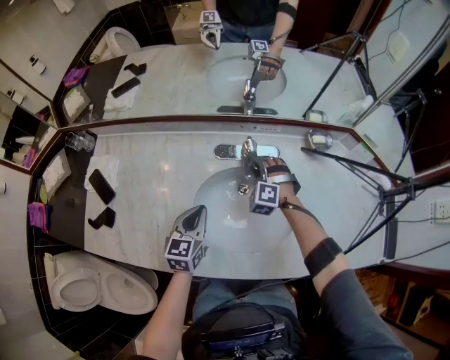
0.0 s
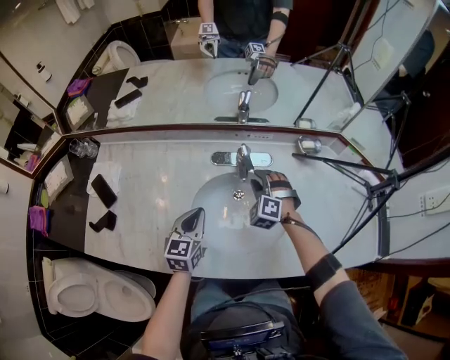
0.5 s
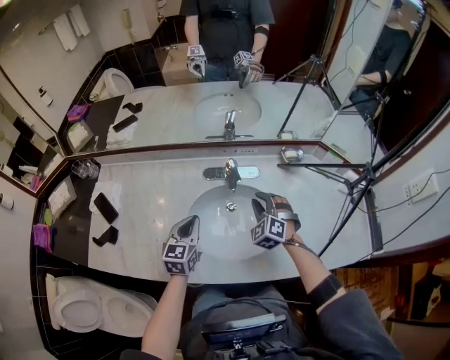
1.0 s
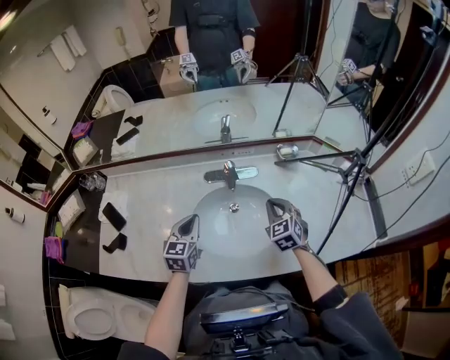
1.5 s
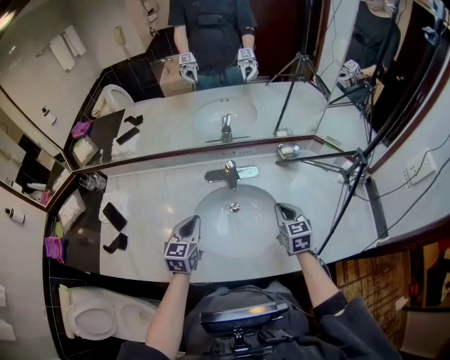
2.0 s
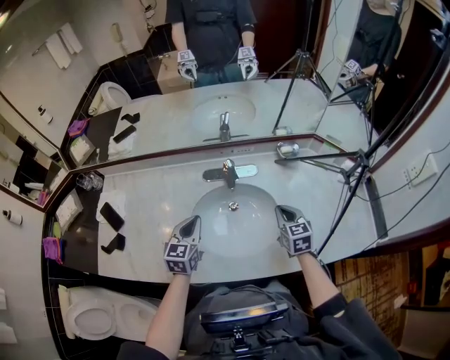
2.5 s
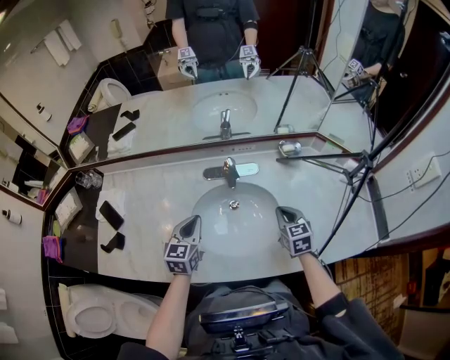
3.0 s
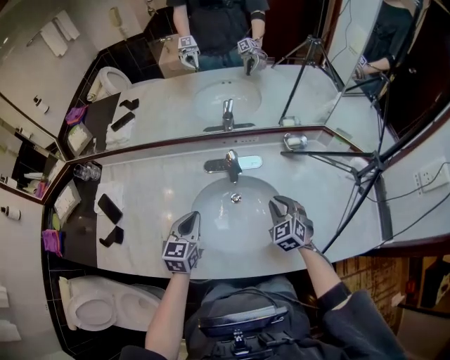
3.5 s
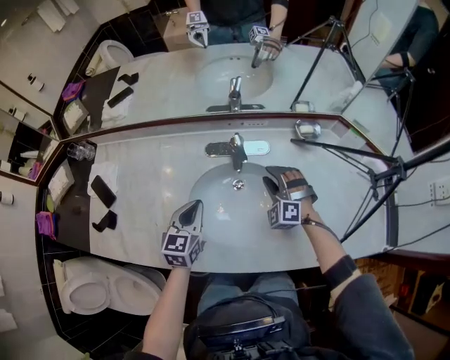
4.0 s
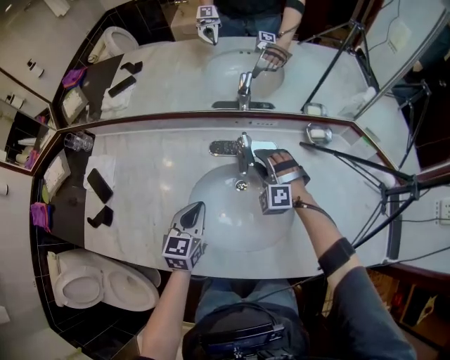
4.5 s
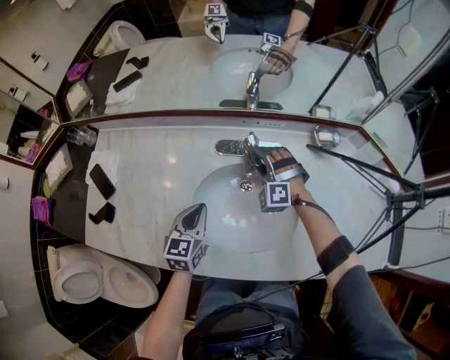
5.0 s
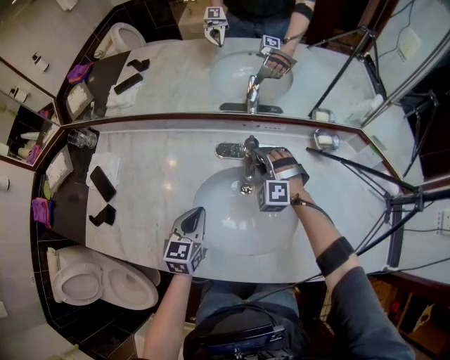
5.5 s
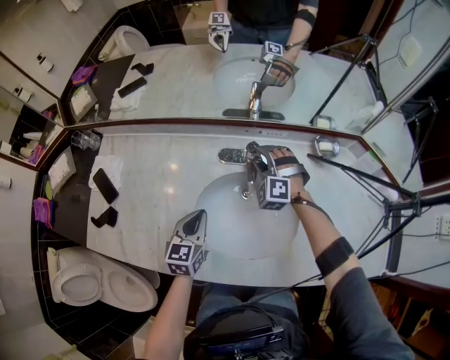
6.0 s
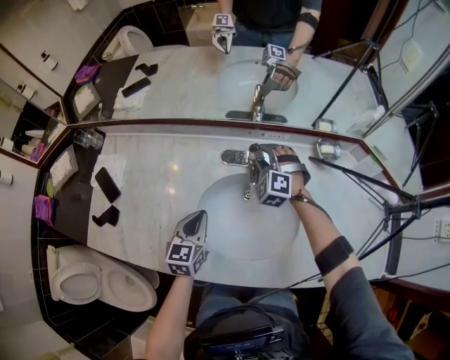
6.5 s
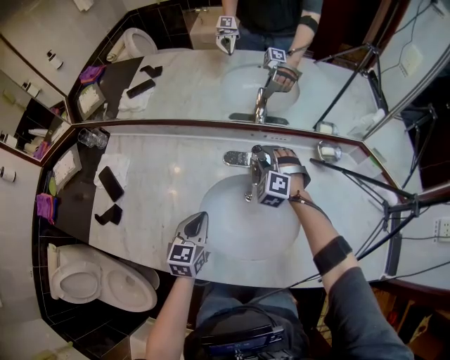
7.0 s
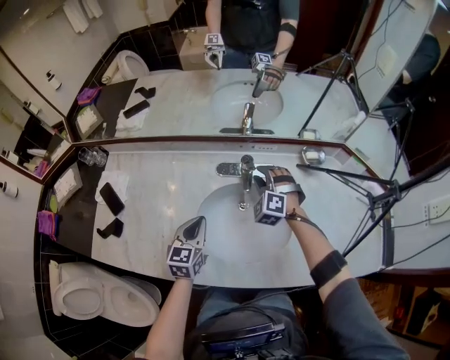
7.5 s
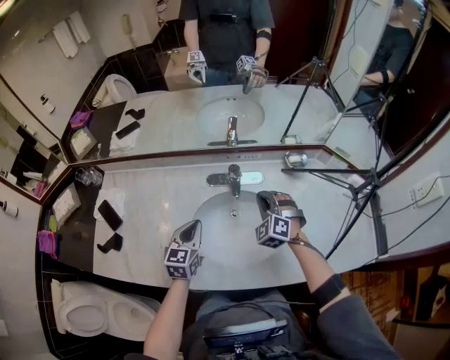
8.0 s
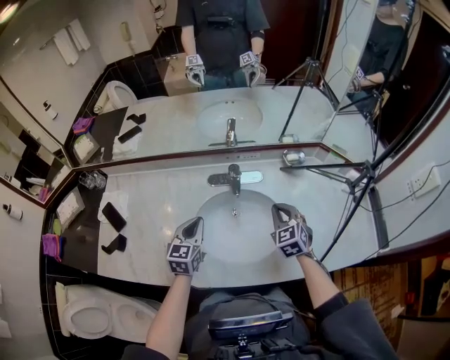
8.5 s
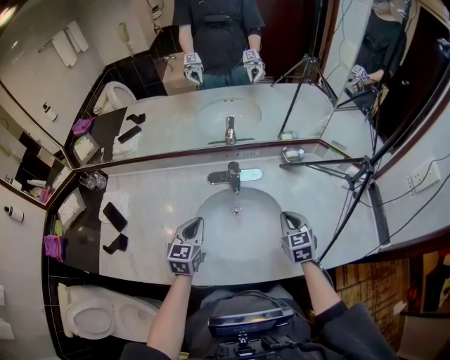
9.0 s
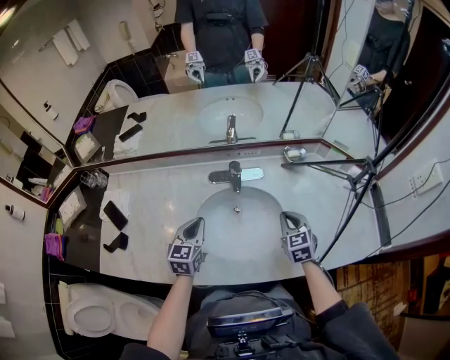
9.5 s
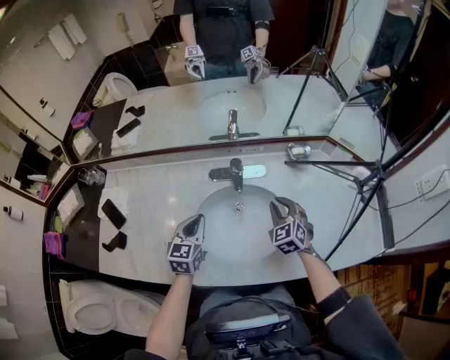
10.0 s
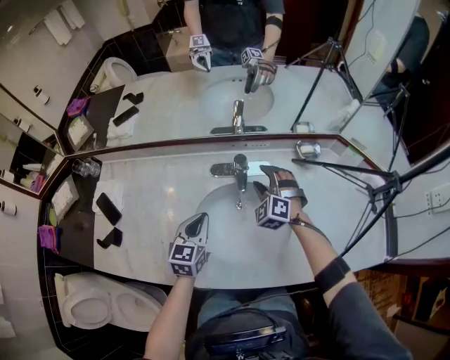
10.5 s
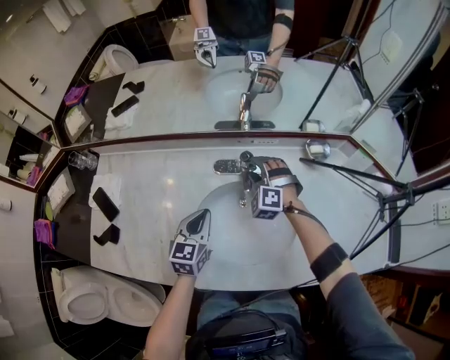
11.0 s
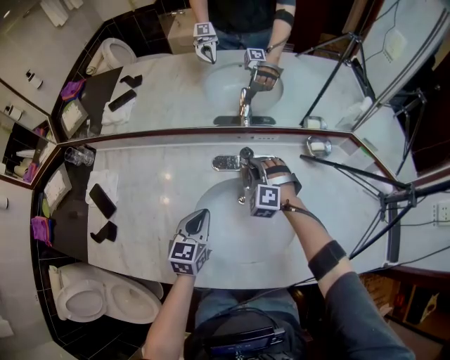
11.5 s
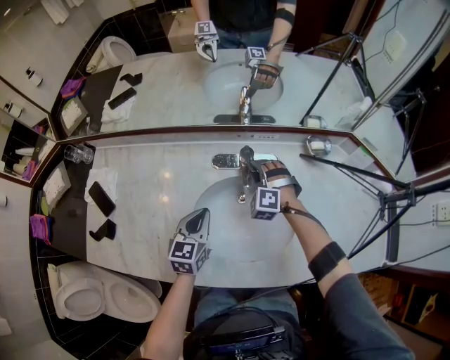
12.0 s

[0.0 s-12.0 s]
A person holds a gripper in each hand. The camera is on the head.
0.0 to 2.0 s: The right gripper heads backward, to the right and upward, covering roughly 25 cm, rolls clockwise, seen from behind, by some 70 degrees, and closes up; the left gripper travels upward by approximately 5 cm.
2.0 to 4.0 s: The right gripper shifts approximately 15 cm forward, downward and to the left, rotates around the line of its fingers by some 70 degrees, counterclockwise from behind, and opens; the left gripper changes place by roughly 5 cm.
4.0 to 6.0 s: The right gripper heads forward and to the left, covering approximately 15 cm.
6.0 to 8.0 s: The left gripper heads upward, covering approximately 5 cm; the right gripper moves backward, upward and to the right, some 15 cm, and closes.
8.0 to 10.0 s: The right gripper goes approximately 5 cm to the right, and rotates approximately 30 degrees.
10.0 to 12.0 s: The left gripper travels downward by some 5 cm. Meanwhile the right gripper shifts approximately 20 cm forward, to the left and downward, twists some 40 degrees counterclockwise, seen from behind, and opens and closes again.

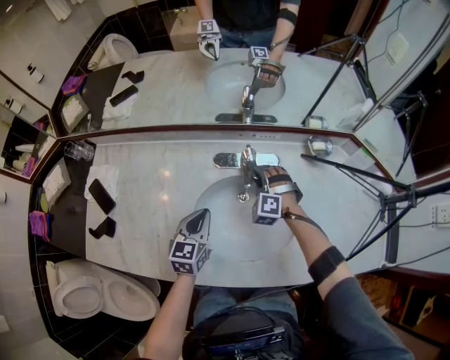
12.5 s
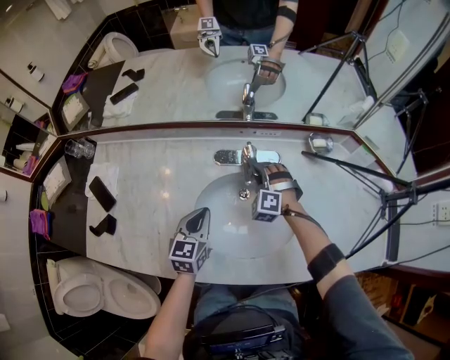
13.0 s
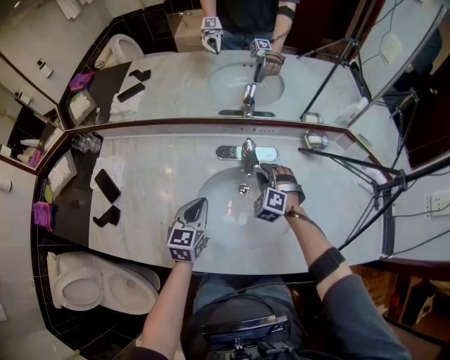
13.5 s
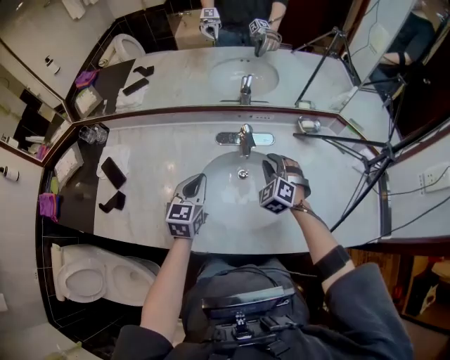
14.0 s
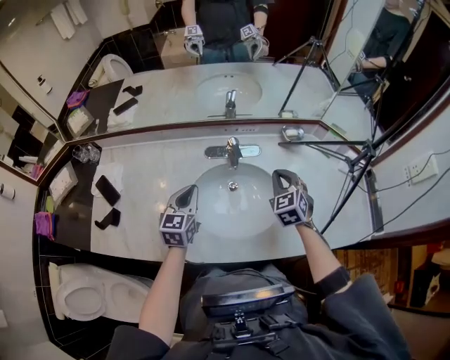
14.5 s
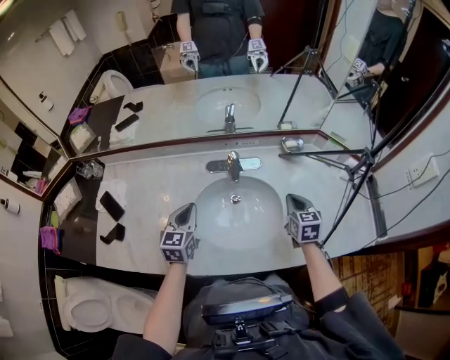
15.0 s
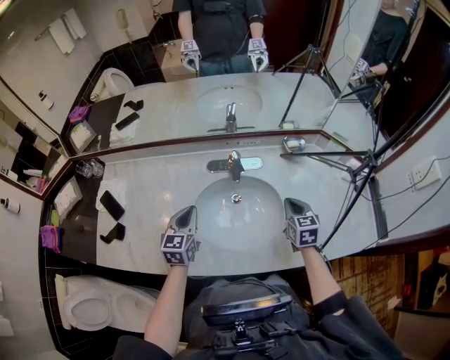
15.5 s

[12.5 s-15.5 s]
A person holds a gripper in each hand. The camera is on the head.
12.5 to 14.0 s: The right gripper travels upward and backward by about 15 cm, and rotates some 20 degrees; the left gripper is displaced upward by about 10 cm.
14.0 to 15.5 s: The right gripper moves to the right and backward, approximately 15 cm, and twists about 60 degrees clockwise, seen from behind.

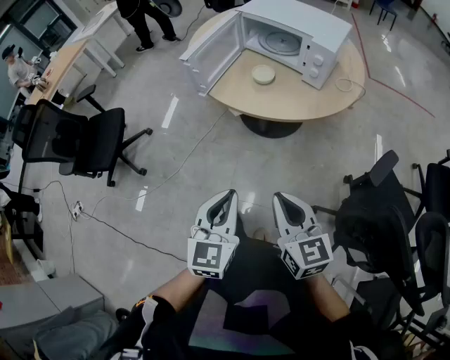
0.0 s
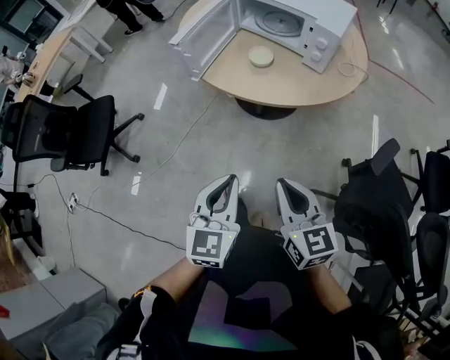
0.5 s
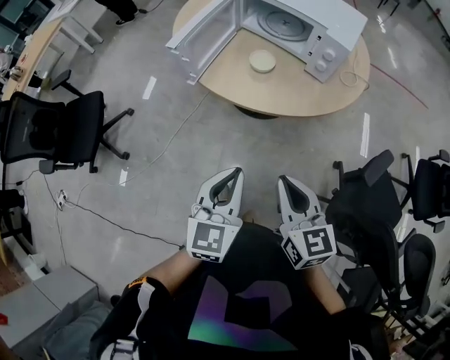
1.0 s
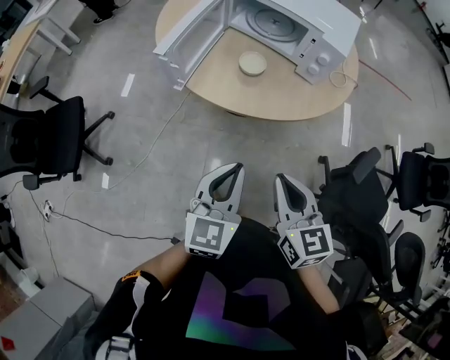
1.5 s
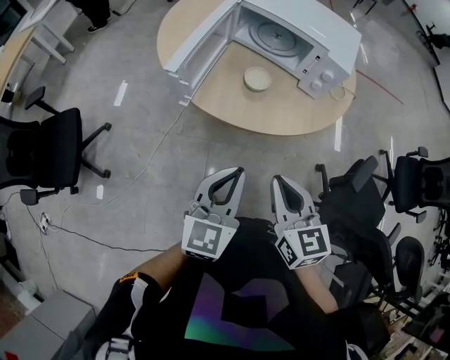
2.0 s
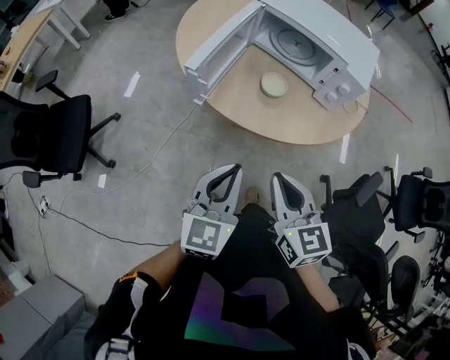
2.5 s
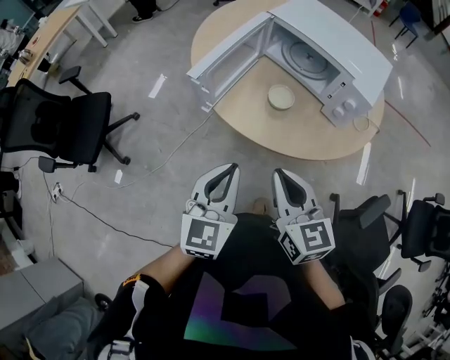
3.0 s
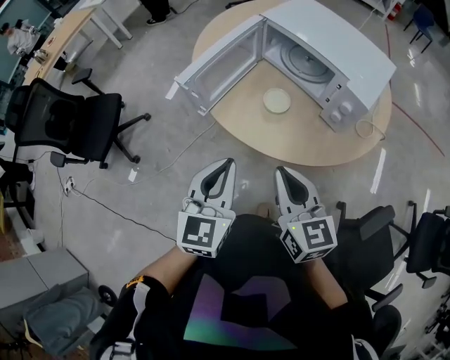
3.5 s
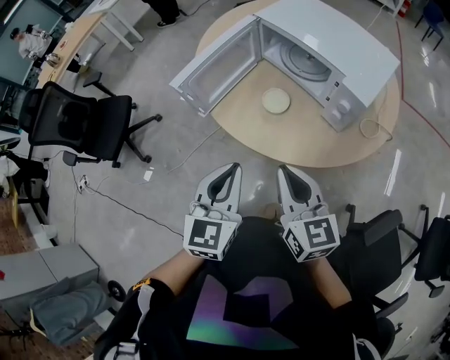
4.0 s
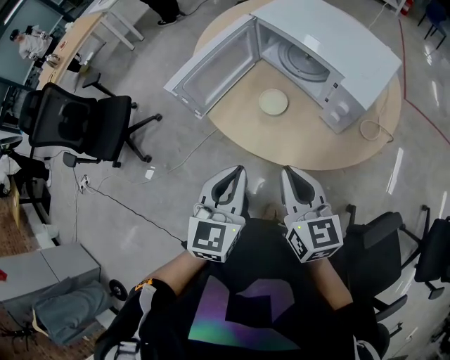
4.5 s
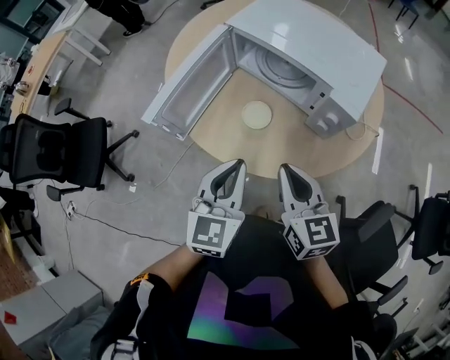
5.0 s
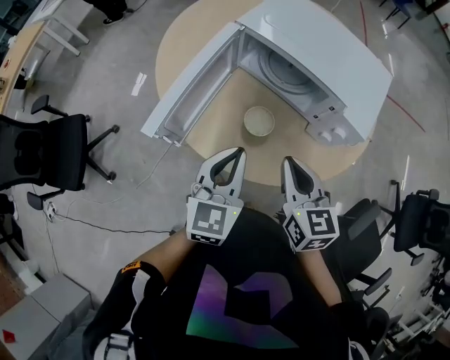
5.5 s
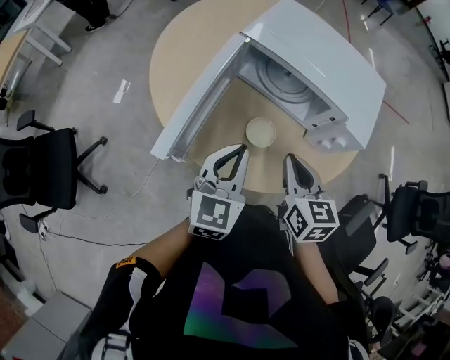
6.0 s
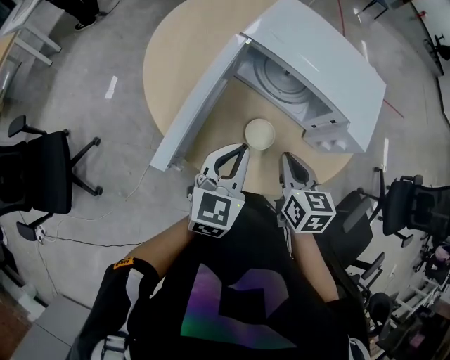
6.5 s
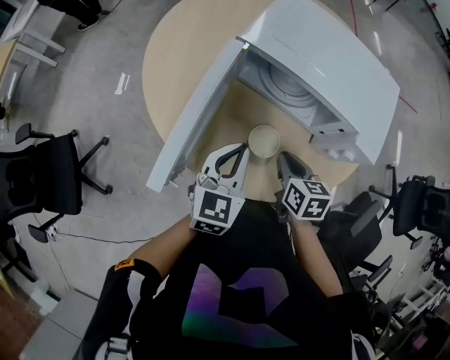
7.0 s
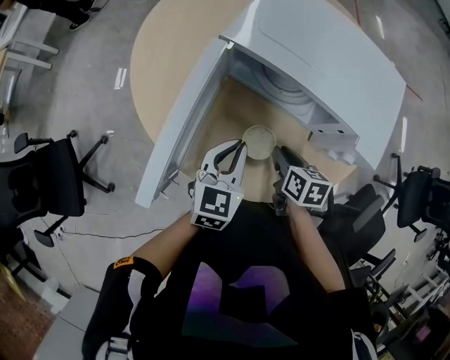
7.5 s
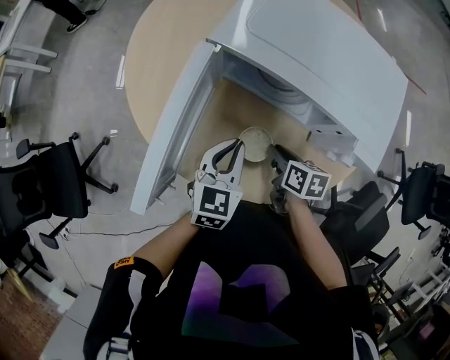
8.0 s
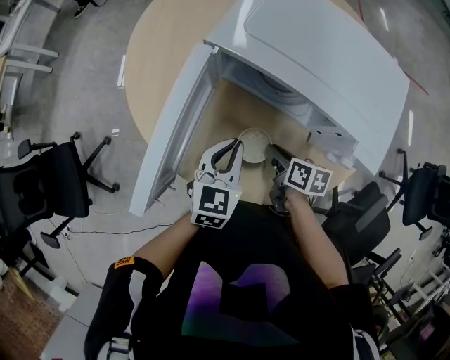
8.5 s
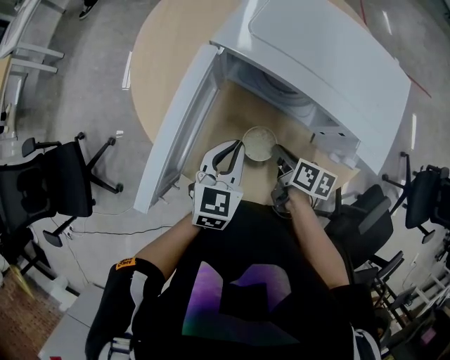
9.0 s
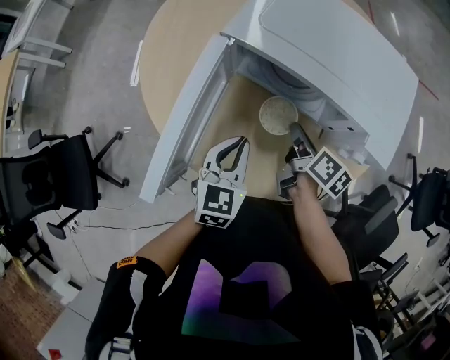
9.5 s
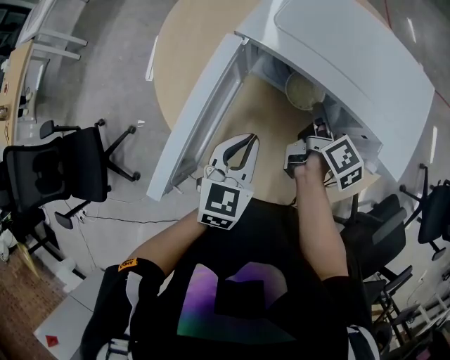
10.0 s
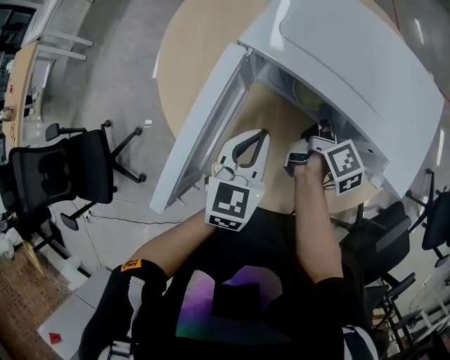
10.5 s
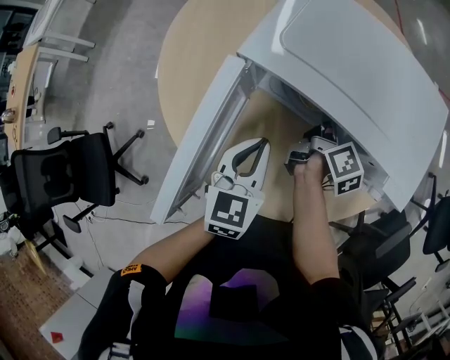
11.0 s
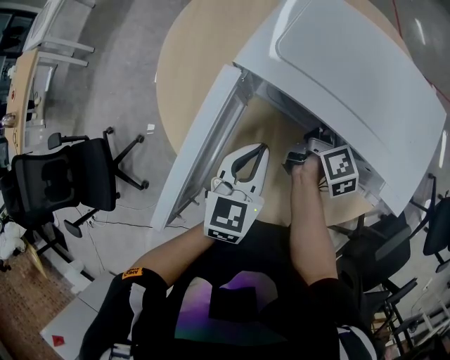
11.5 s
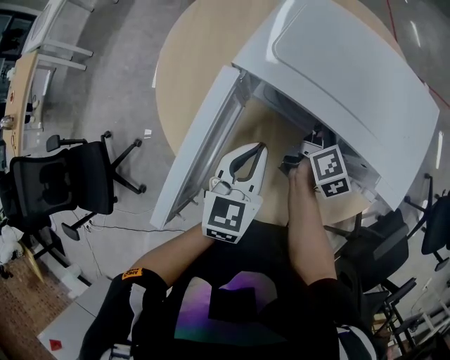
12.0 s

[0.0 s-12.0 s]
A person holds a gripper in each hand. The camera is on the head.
0.0 to 2.0 s: Both grippers move forward, roughly 20 cm. The left gripper rotates roughly 20 degrees.
2.0 to 4.0 s: Both grippers travel together to the right and forward, about 15 cm. The right gripper turns by approximately 20 degrees, while the left gripper swivels about 30 degrees.
4.0 to 6.0 s: Both grippers move forward, roughly 20 cm. The left gripper turns by approximately 20 degrees. Meanwhile the right gripper rotates some 30 degrees.
6.0 to 8.0 s: The right gripper is displaced downward and forward by approximately 20 cm, and turns by approximately 40 degrees. The left gripper goes about 15 cm forward and downward.
8.0 to 10.0 s: The right gripper is displaced forward and upward by some 15 cm, and changes its angle by some 50 degrees.
10.0 to 12.0 s: Both grippers move forward, about 5 cm.
